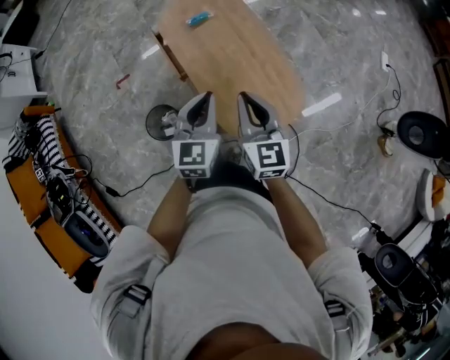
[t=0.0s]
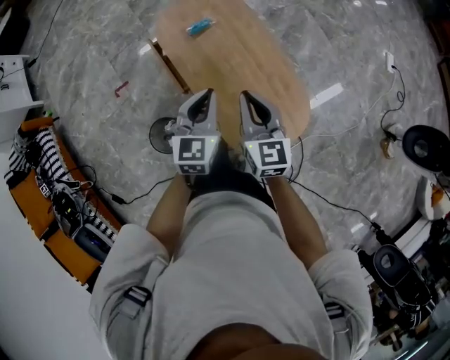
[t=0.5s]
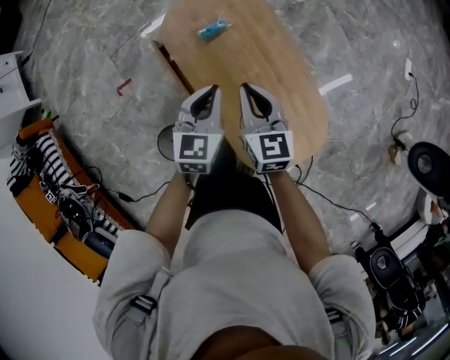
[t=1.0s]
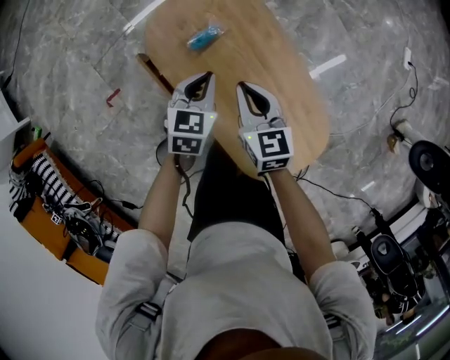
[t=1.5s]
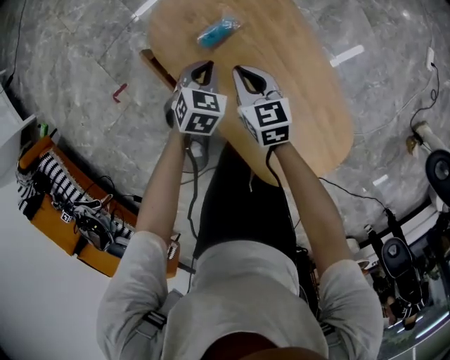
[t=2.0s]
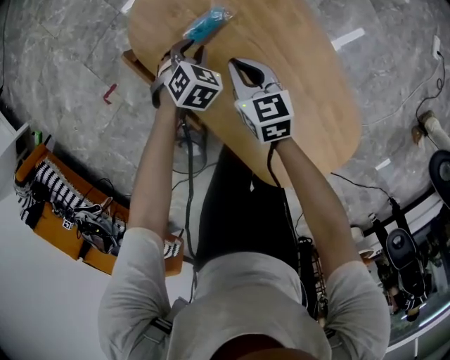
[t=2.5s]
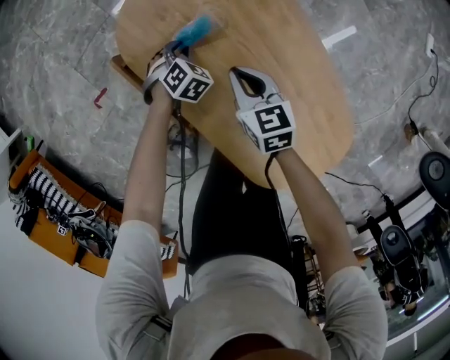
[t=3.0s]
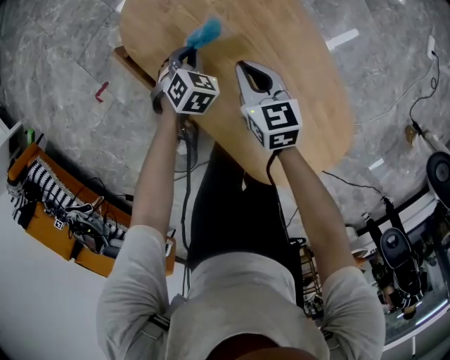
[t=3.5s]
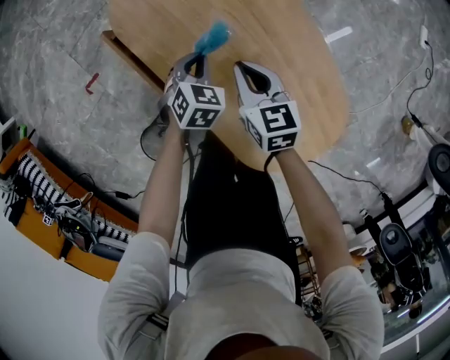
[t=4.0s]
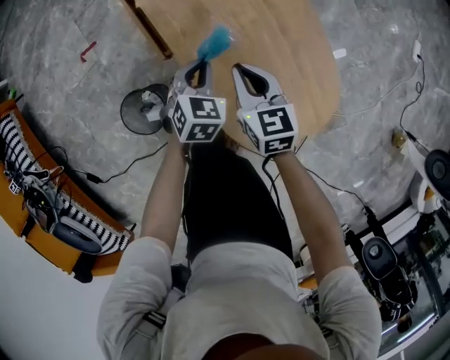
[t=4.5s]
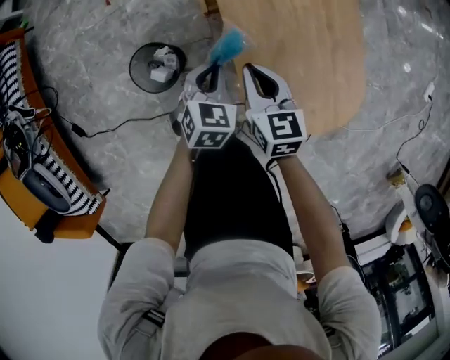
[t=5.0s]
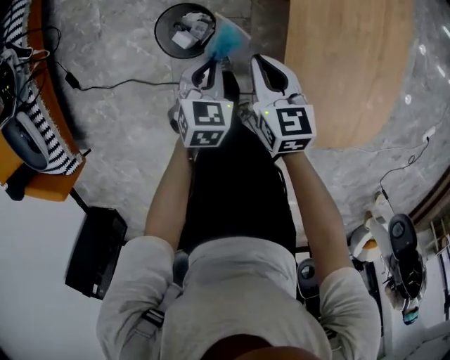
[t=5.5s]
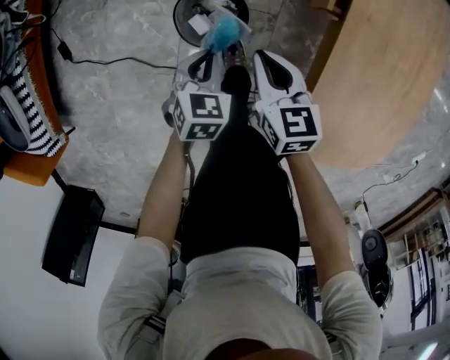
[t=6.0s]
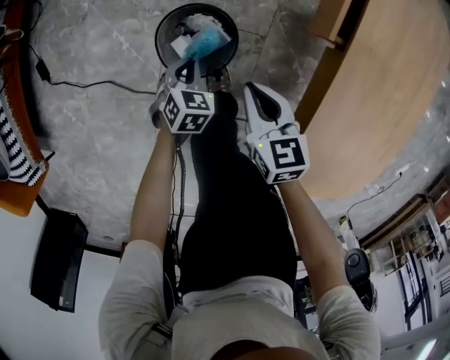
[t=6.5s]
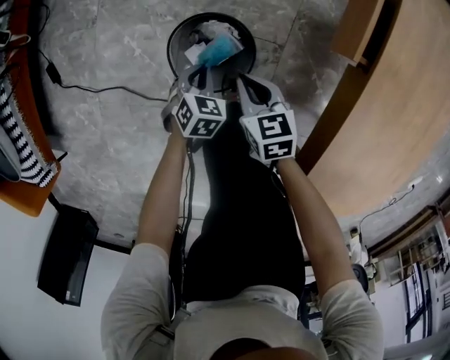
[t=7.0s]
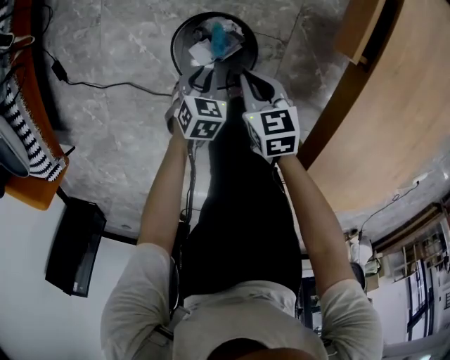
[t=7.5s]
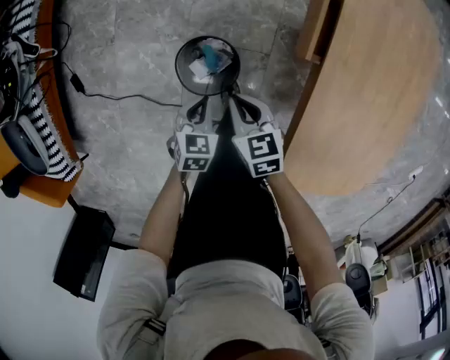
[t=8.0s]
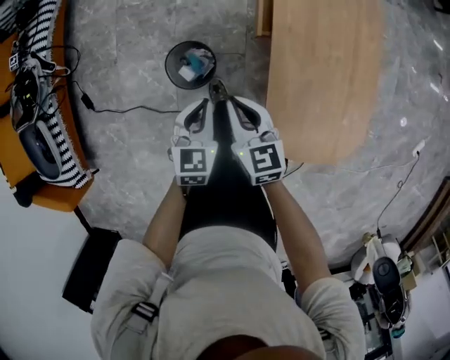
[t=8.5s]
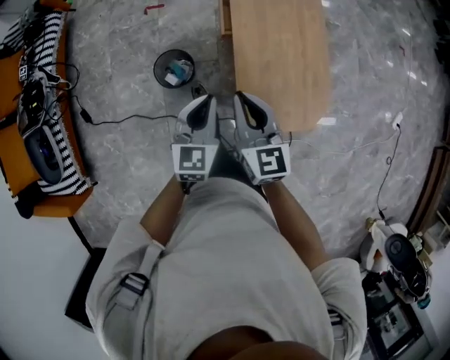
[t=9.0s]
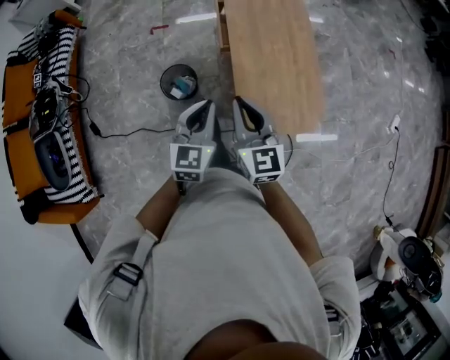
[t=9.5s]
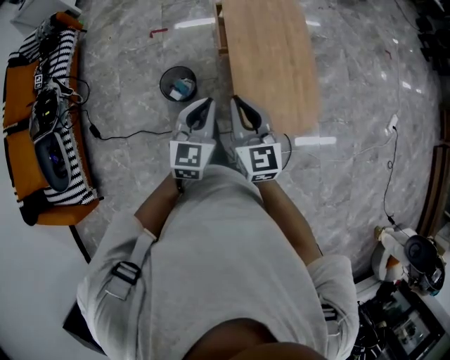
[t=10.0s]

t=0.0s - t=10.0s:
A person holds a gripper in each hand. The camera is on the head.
t=0.0s - t=2.0s: The two grippers travel together, forward, some 40 cm. Both grippers move downward, some 35 cm. The left gripper tips its fingers downward by roughly 40 degrees; the right gripper turns by some 30 degrees.
t=2.0s - t=4.0s: The left gripper heads backward and downward, covering roughly 10 cm, and opens, then closes once more; the right gripper moves backward and to the right, about 10 cm.
t=4.0s - t=6.0s: The pair of grippers is taken about 50 cm. The left gripper rotates around the line of its fingers by roughly 50 degrees, counterclockwise from behind. Meanwhile the right gripper changes its angle by roughly 40 degrees.
t=6.0s - t=8.0s: The right gripper goes downward and returns, approximately 20 cm each way. Meanwhile the left gripper travels downward and back again, roughly 20 cm each way, and opens, then closes once more.
t=8.0s - t=10.0s: The right gripper shifts some 50 cm upward and backward, and tips its fingers upward by some 30 degrees, while the left gripper shifts approximately 50 cm upward, and points its fingers roughly 40 degrees further upward.

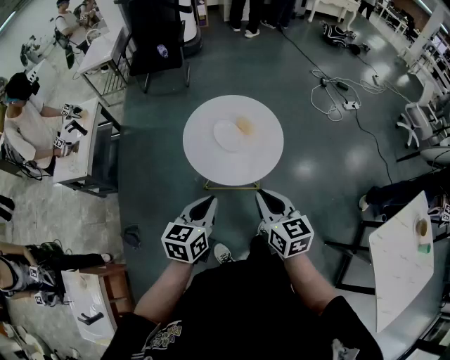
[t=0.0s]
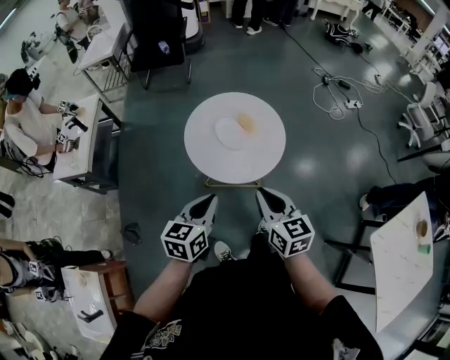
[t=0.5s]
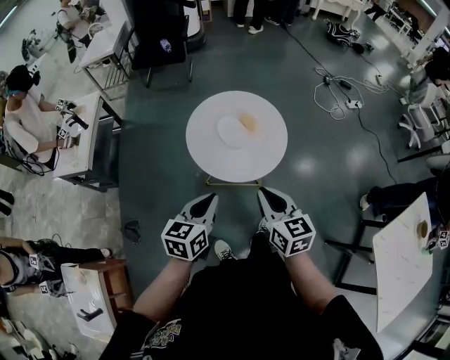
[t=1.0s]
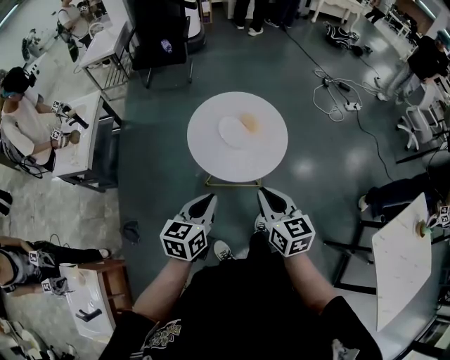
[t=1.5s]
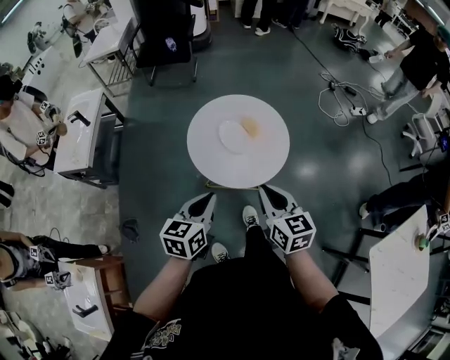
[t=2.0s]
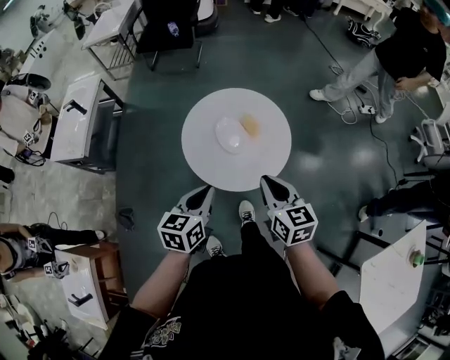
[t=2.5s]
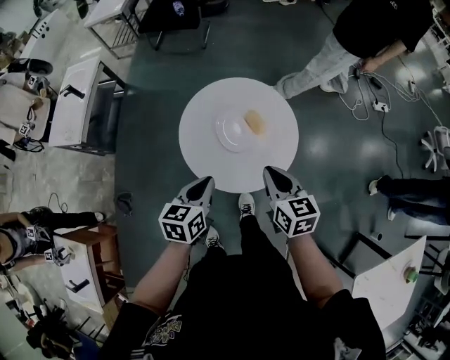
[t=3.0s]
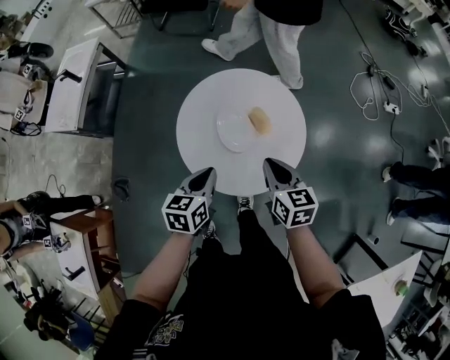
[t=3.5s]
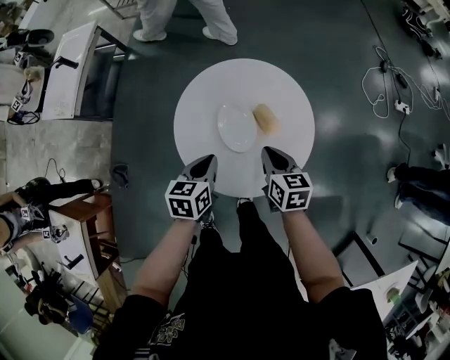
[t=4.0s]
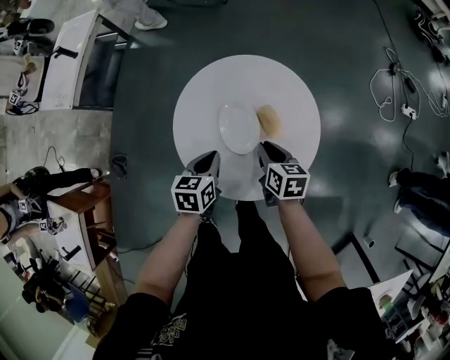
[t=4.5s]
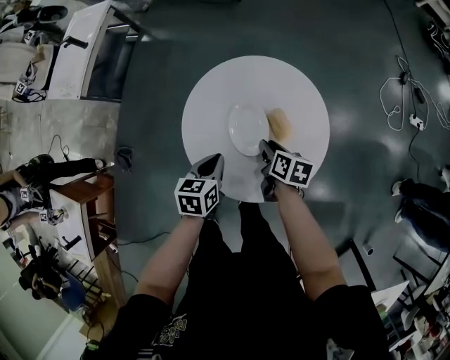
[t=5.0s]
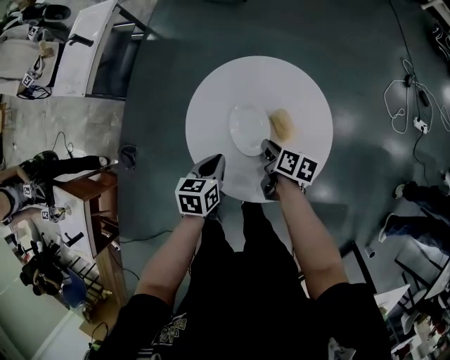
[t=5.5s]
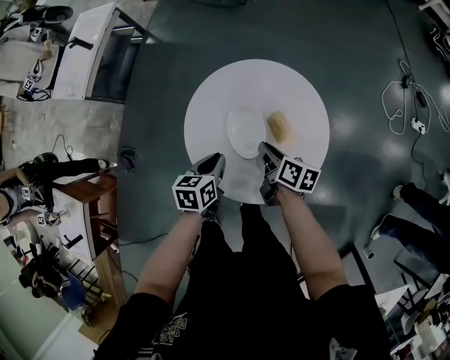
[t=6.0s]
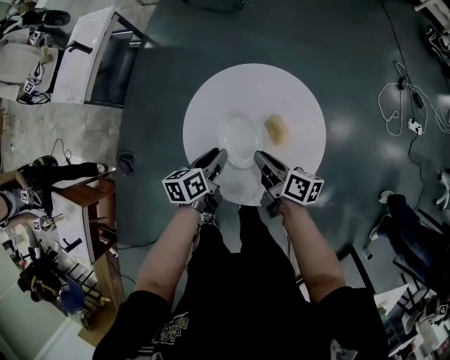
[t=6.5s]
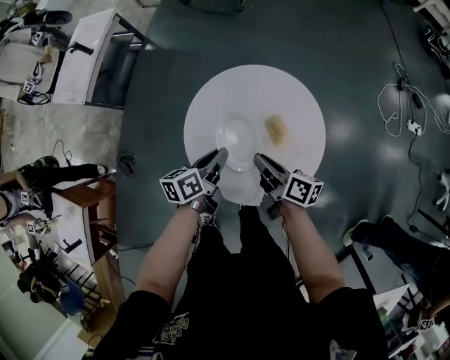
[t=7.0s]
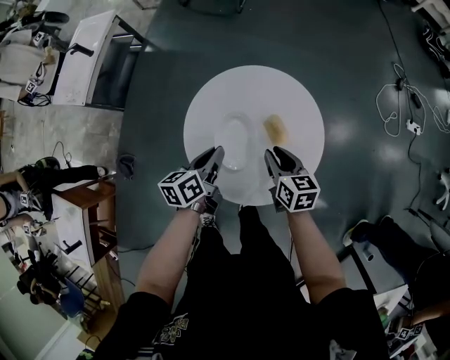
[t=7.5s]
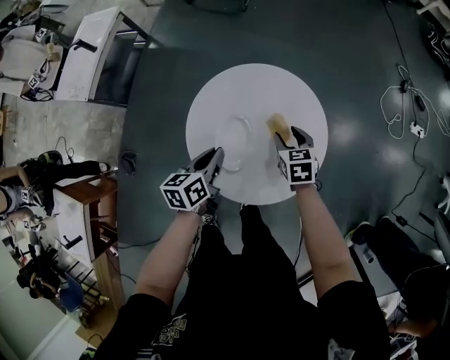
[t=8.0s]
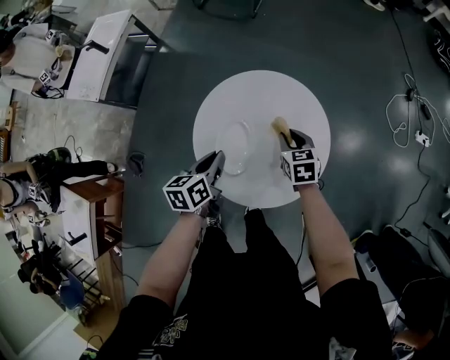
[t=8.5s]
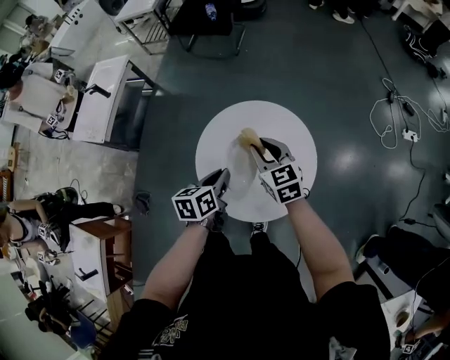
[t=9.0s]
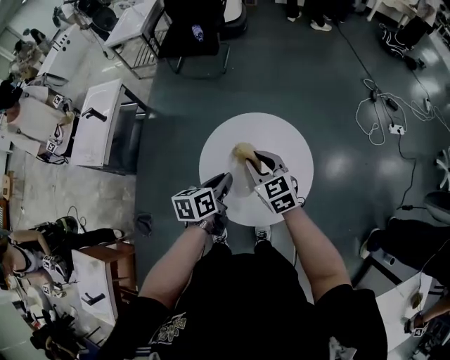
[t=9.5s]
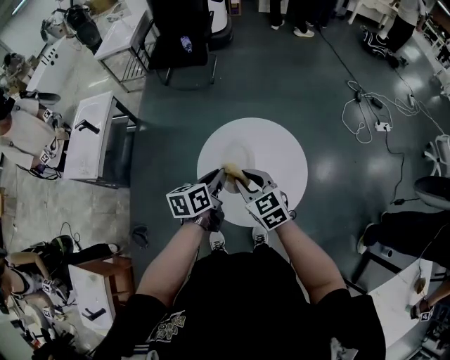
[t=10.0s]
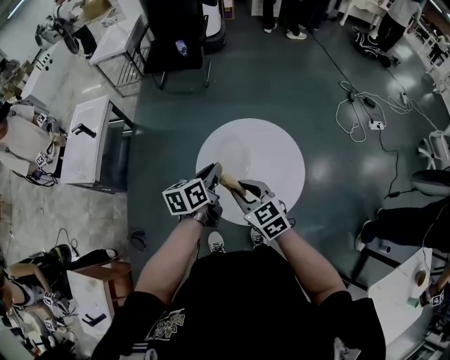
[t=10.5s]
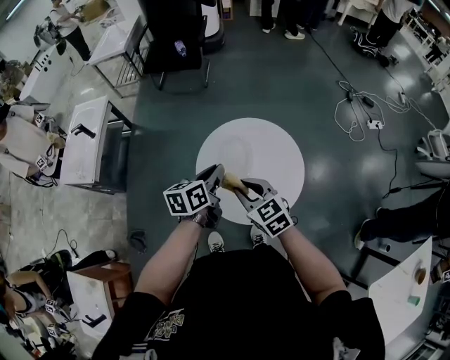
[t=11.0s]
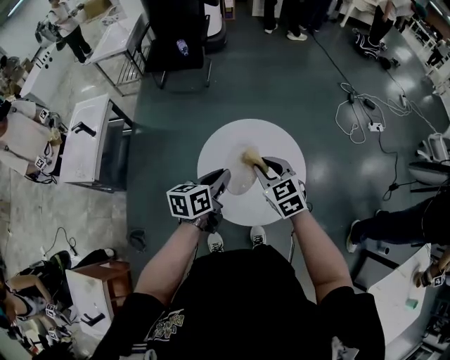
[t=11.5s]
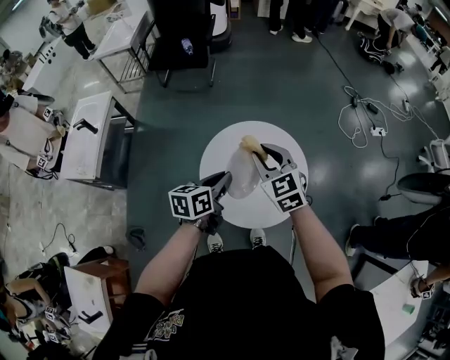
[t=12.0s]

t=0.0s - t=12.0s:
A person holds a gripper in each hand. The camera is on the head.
t=0.0s - t=2.0s: The grippers move only a little.
t=2.0s - t=4.0s: Both grippers travel together forward and downward, some 30 cm. The right gripper swivels approximately 20 degrees, while the left gripper rotates some 20 degrees.
t=4.0s - t=6.0s: The grippers both shift downward by roughly 5 cm. The right gripper rotates about 30 degrees.
t=6.0s - t=8.0s: The right gripper is displaced to the right by about 5 cm, twists approximately 50 degrees counterclockwise, seen from behind, and opens up; the left gripper is displaced upward by about 5 cm, and opens and closes again.
t=8.0s - t=10.0s: The right gripper is displaced upward, to the left and backward by approximately 25 cm, rotates about 20 degrees, and closes its fingers, while the left gripper travels upward by about 15 cm.
t=10.0s - t=12.0s: The right gripper travels upward and forward by approximately 10 cm.

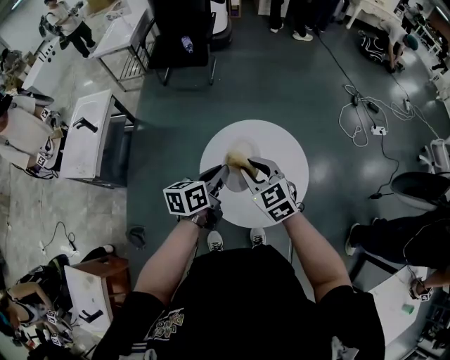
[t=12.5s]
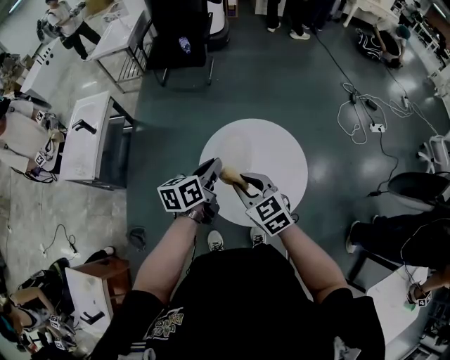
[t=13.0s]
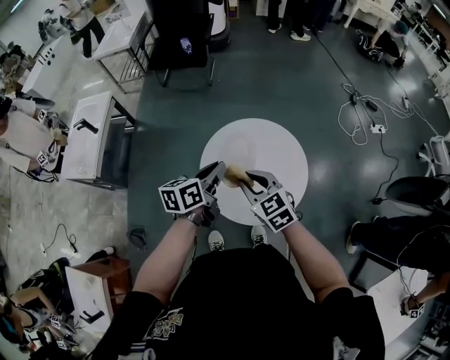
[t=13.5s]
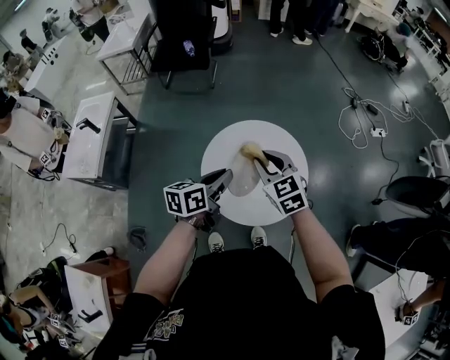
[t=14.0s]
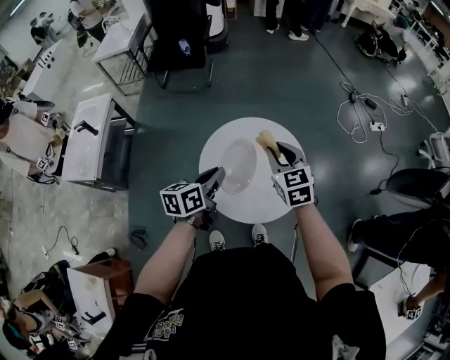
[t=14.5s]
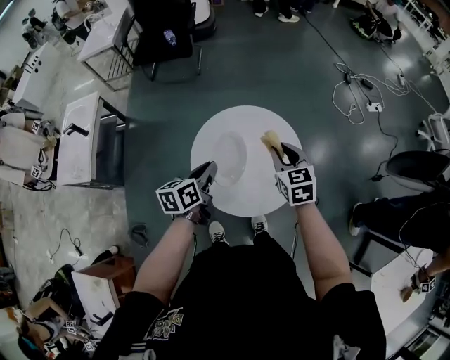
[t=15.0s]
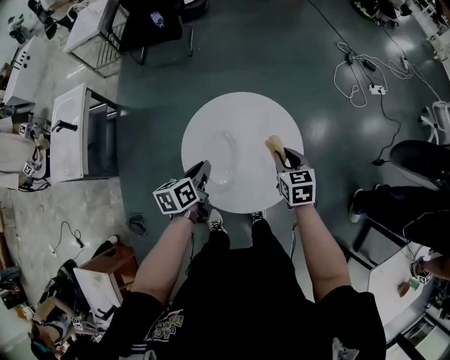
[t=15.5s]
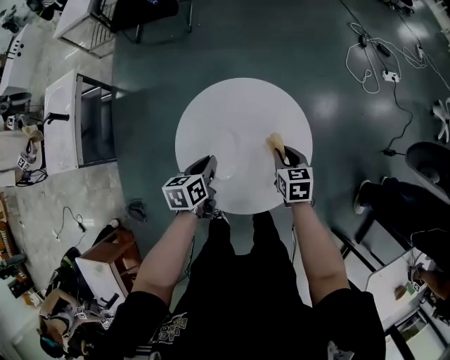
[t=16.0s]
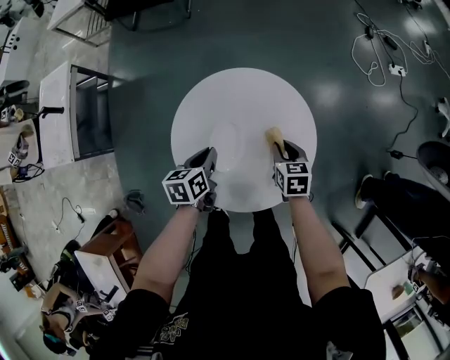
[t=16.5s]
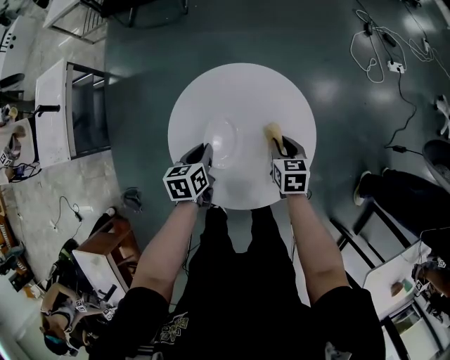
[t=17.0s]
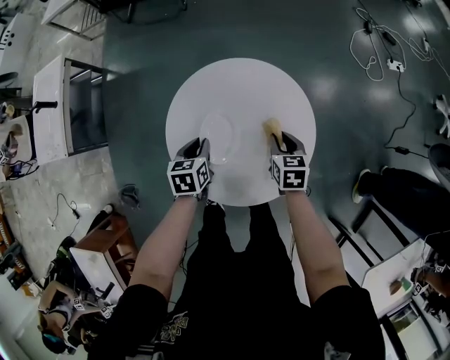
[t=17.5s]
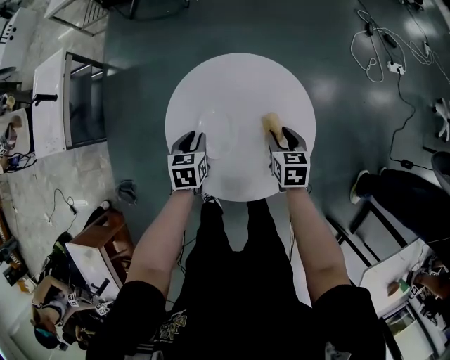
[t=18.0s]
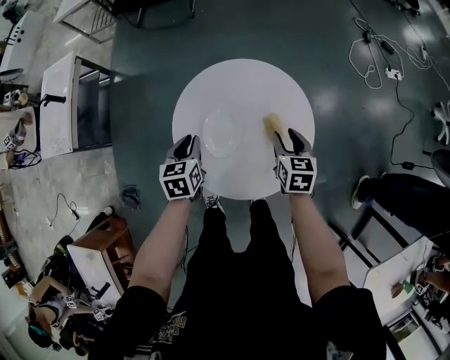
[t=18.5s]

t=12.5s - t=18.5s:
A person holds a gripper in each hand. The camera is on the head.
t=12.5s - t=14.5s: The right gripper goes approximately 10 cm to the right.
t=14.5s - t=16.5s: Both grippers move downward, approximately 25 cm. The left gripper turns by roughly 20 degrees. Meanwhile the right gripper rotates approximately 30 degrees.
t=16.5s - t=18.5s: The right gripper goes some 5 cm upward. The left gripper travels to the left by about 5 cm, and swivels some 20 degrees.
